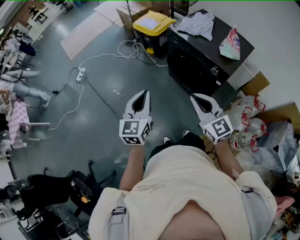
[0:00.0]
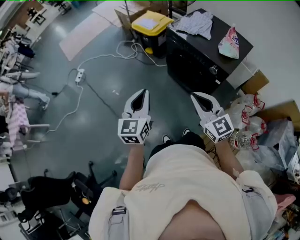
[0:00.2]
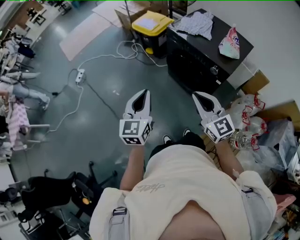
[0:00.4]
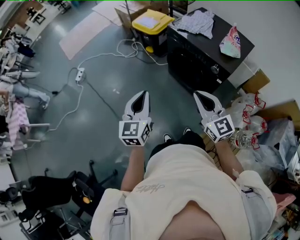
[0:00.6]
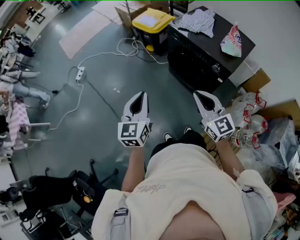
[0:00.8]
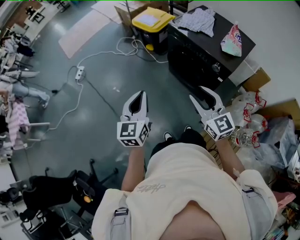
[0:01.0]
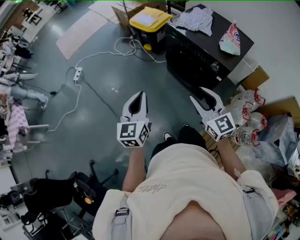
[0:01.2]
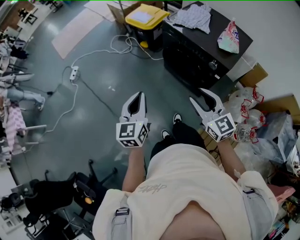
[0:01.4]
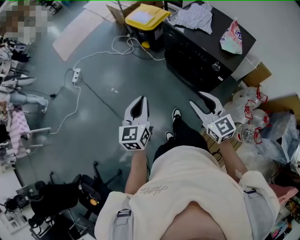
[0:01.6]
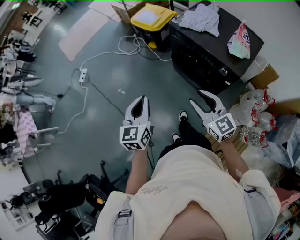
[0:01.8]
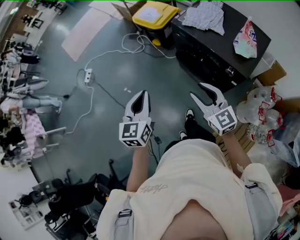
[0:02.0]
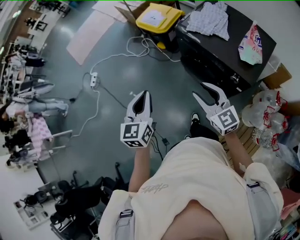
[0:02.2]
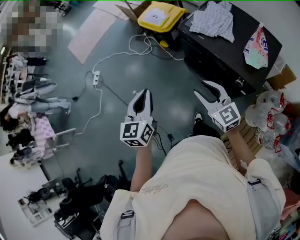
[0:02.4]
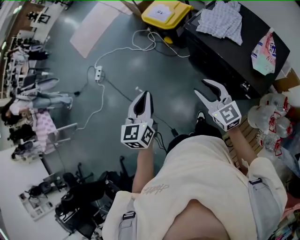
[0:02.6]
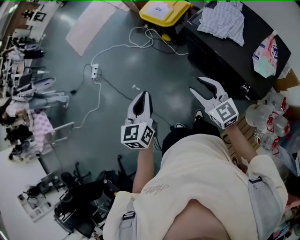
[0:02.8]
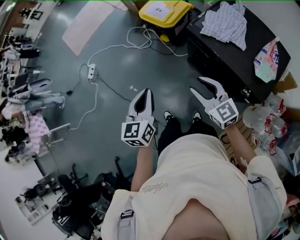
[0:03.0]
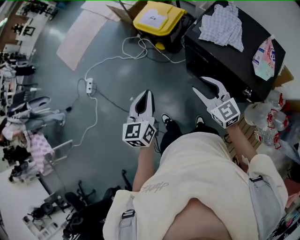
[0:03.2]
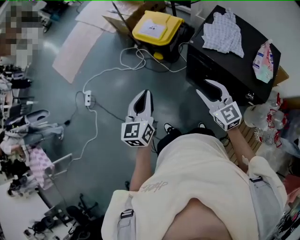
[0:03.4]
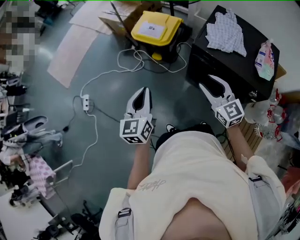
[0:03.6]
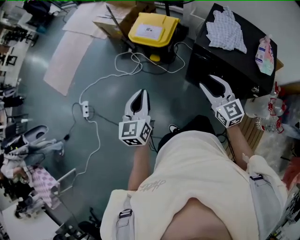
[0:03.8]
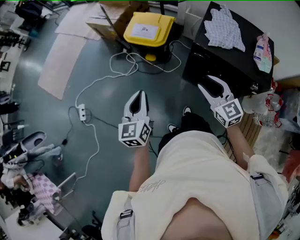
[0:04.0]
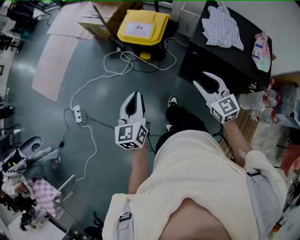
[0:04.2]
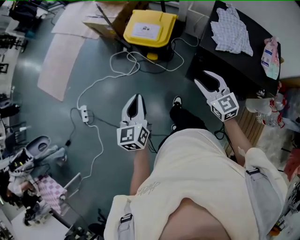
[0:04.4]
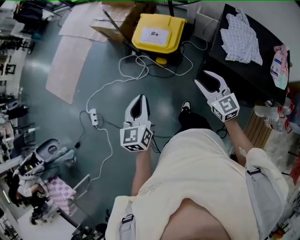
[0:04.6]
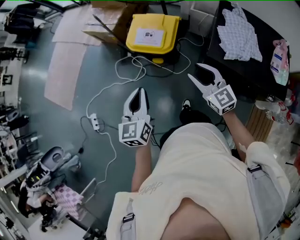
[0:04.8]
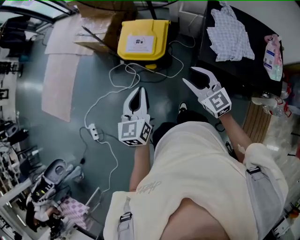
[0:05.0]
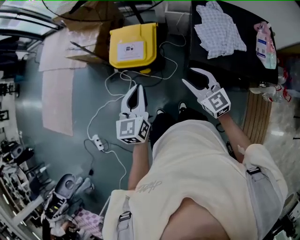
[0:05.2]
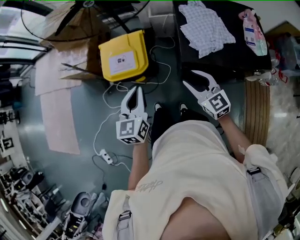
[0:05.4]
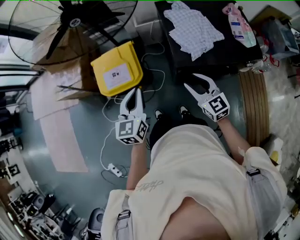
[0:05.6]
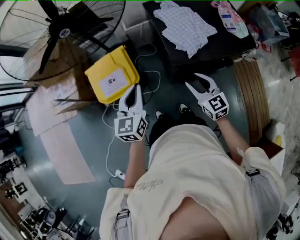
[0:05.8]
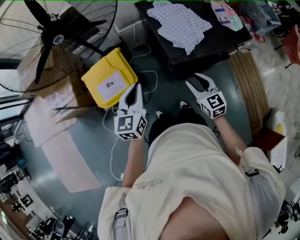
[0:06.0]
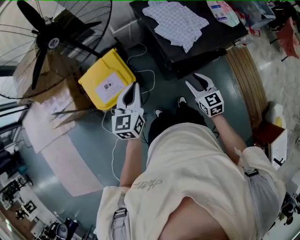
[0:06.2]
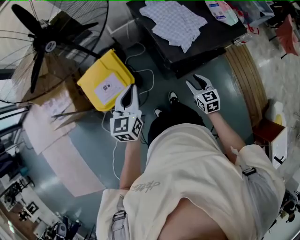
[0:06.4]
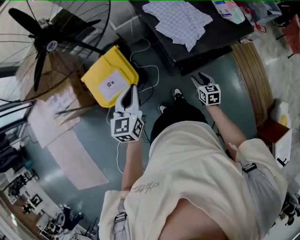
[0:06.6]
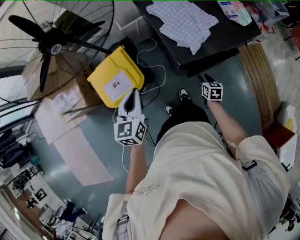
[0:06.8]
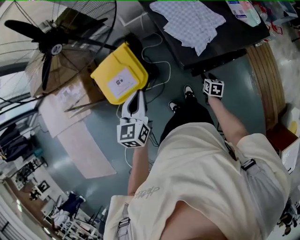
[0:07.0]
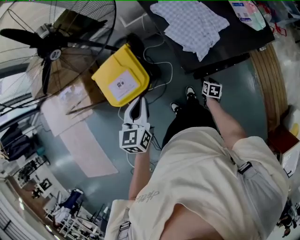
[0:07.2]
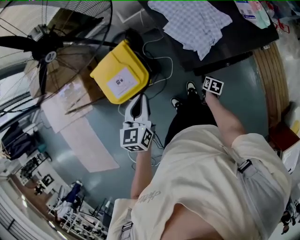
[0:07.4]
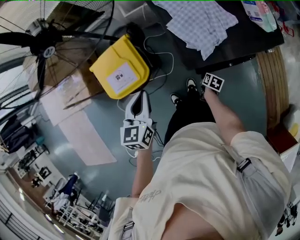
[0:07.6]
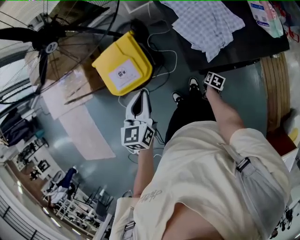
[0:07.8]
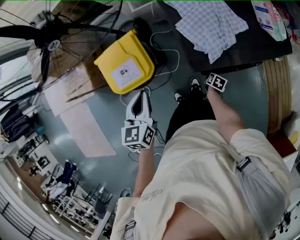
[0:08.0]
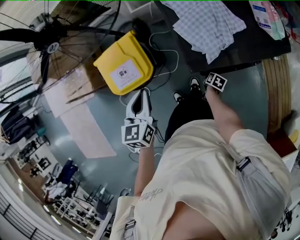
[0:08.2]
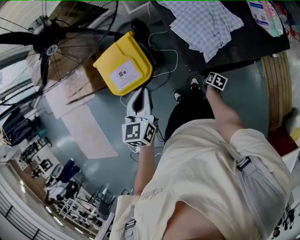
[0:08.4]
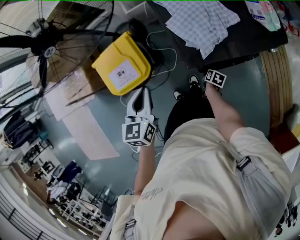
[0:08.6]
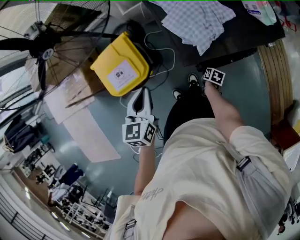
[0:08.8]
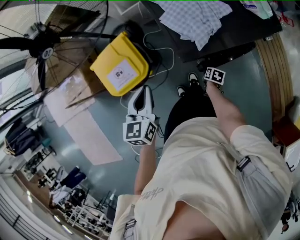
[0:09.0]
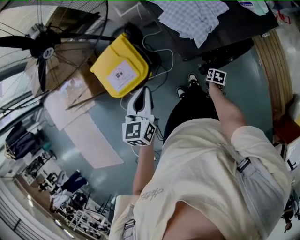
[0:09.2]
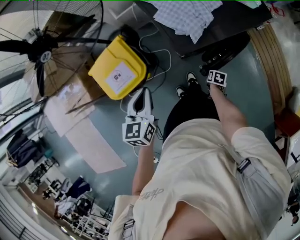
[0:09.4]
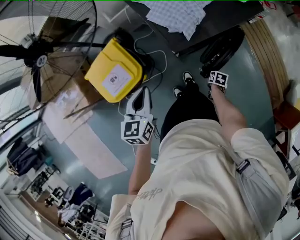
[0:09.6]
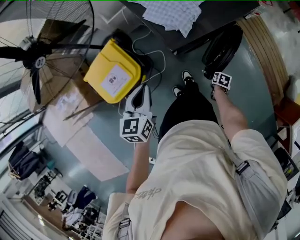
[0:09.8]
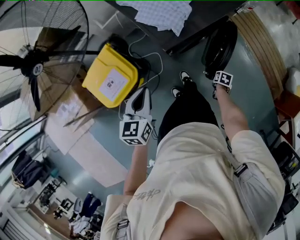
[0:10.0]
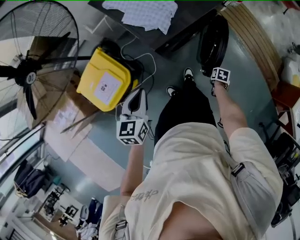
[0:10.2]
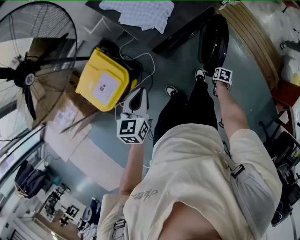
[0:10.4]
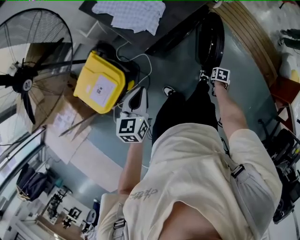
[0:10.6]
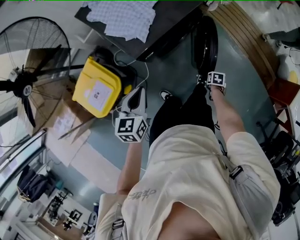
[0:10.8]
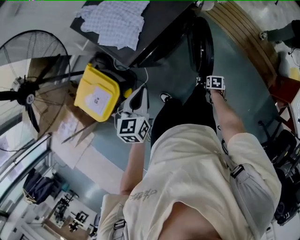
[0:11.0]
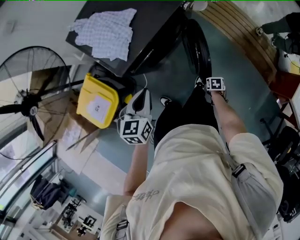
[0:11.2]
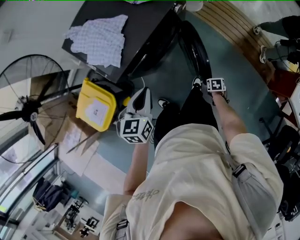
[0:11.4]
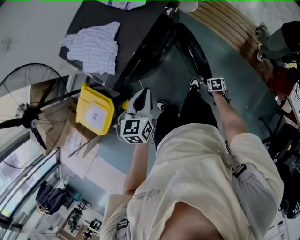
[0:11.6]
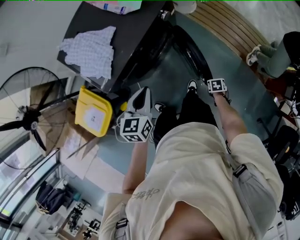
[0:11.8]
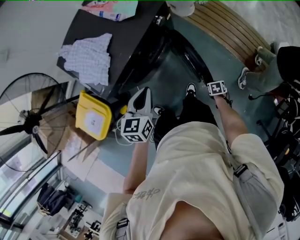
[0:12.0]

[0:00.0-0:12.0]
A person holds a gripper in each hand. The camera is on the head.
0:00.0 to 0:01.6: The right gripper shifts by some 5 cm, and opens up, while the left gripper changes place by roughly 5 cm.
0:01.6 to 0:03.0: Both grippers move forward, approximately 25 cm.
0:03.0 to 0:04.4: Both grippers move forward and to the left, roughly 25 cm. The right gripper swivels approximately 30 degrees.
0:04.4 to 0:06.0: The right gripper changes place by some 10 cm, and rotates some 50 degrees; the left gripper changes place by some 35 cm, and rotates roughly 50 degrees.
0:06.0 to 0:07.6: The left gripper changes place by roughly 5 cm. Meanwhile the right gripper is displaced downward by about 30 cm, and angles its fingers downward, by about 40 degrees.
0:07.6 to 0:09.0: The grippers make only small movements.
0:09.0 to 0:10.4: The left gripper ends up some 10 cm from where it was, and swivels approximately 30 degrees. The right gripper ends up about 25 cm from where it was, and closes.
0:10.4 to 0:12.0: The right gripper ends up about 20 cm from where it was. Meanwhile the left gripper ends up some 30 cm from where it was.

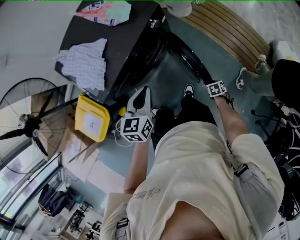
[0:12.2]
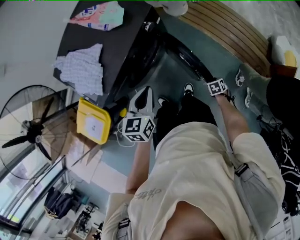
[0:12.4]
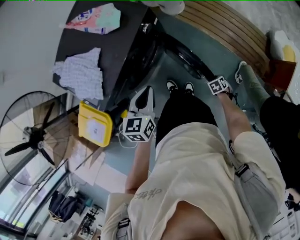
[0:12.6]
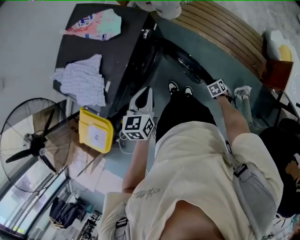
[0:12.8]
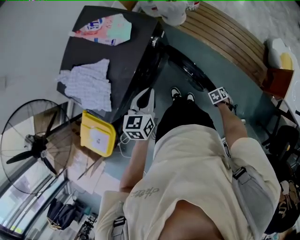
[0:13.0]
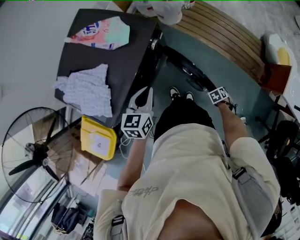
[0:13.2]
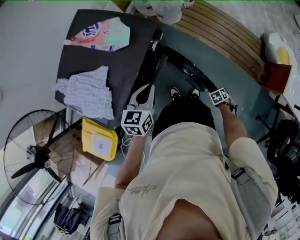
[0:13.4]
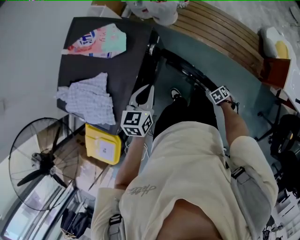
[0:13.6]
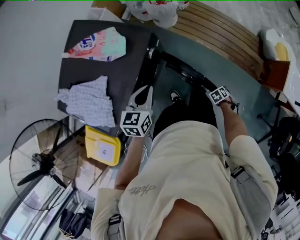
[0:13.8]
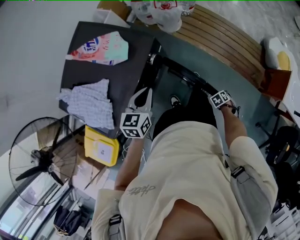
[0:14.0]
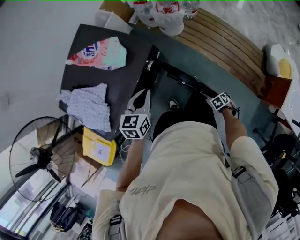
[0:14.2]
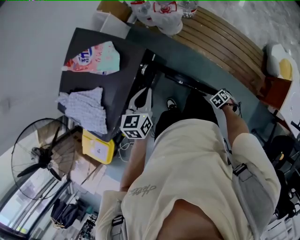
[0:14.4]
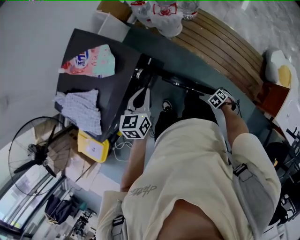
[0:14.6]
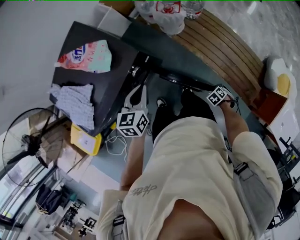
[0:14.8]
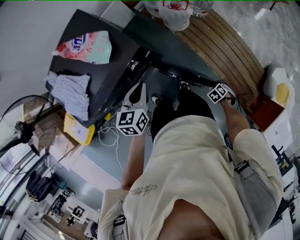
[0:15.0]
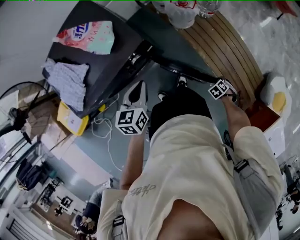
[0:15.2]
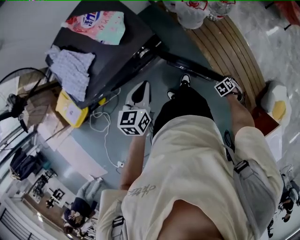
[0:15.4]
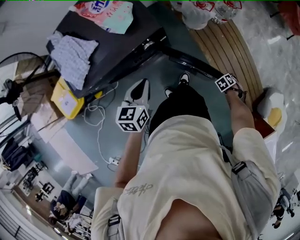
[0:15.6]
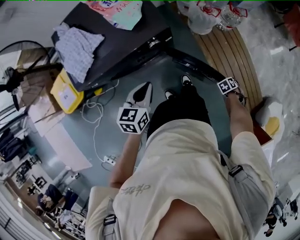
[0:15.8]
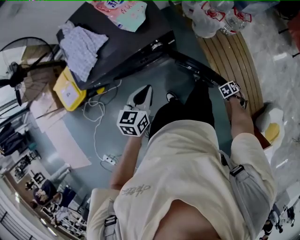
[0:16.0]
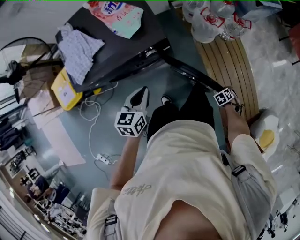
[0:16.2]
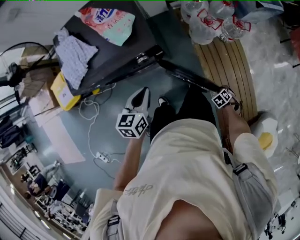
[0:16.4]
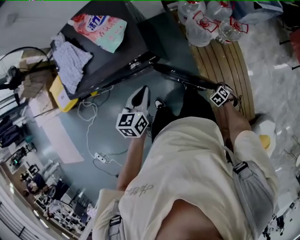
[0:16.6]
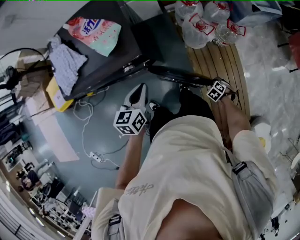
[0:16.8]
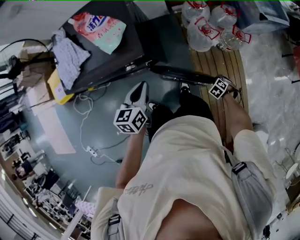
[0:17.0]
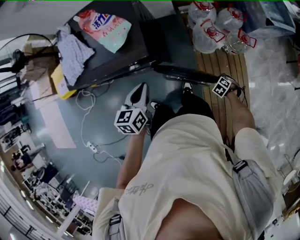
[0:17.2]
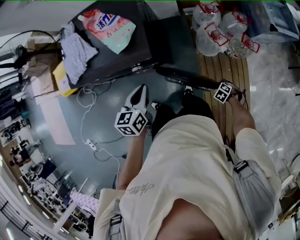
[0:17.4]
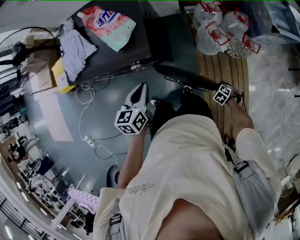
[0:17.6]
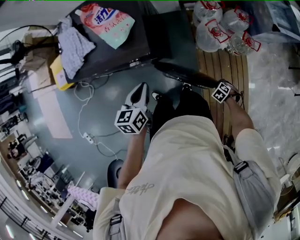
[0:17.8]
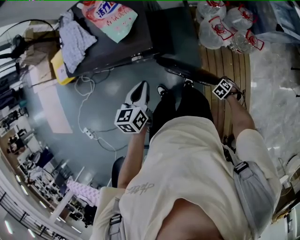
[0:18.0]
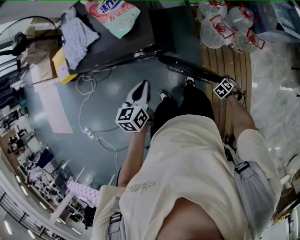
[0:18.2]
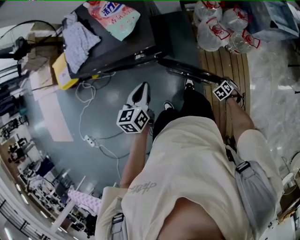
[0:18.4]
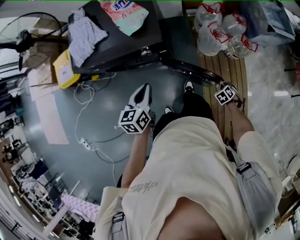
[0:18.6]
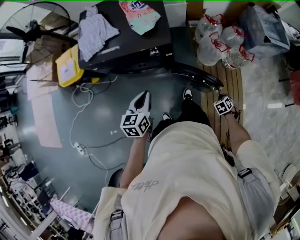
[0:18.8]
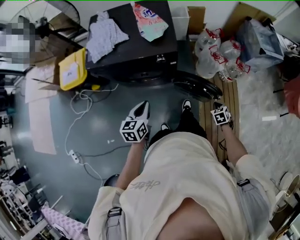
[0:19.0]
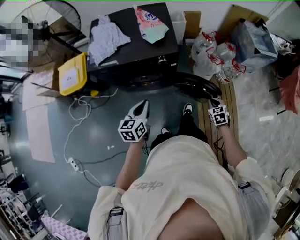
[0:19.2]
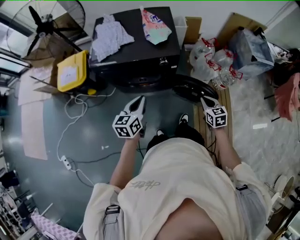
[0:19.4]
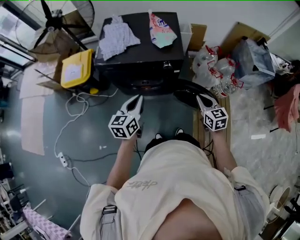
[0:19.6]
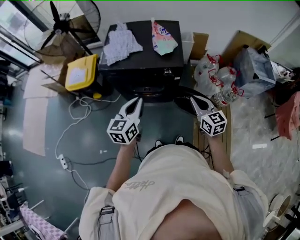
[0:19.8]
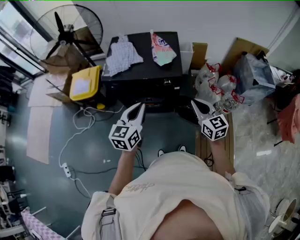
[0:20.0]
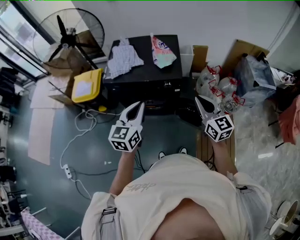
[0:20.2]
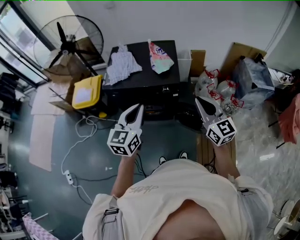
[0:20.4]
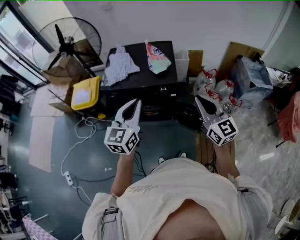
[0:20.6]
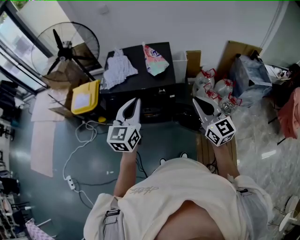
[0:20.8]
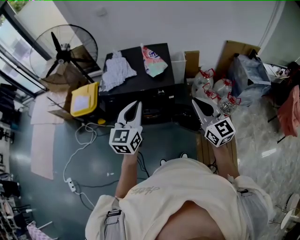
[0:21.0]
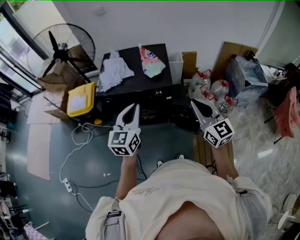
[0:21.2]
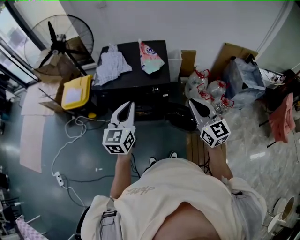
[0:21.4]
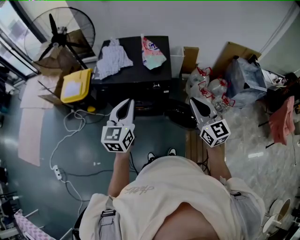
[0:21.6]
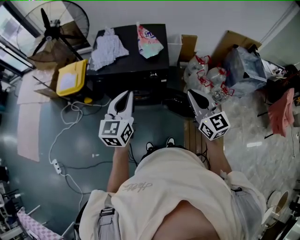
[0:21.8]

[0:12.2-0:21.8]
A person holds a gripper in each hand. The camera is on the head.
0:12.2 to 0:13.8: The left gripper moves some 15 cm. Meanwhile the right gripper changes place by approximately 5 cm.
0:13.8 to 0:15.4: The left gripper ends up approximately 10 cm from where it was, and swivels some 40 degrees. Meanwhile the right gripper shifts by some 30 cm, and turns by some 40 degrees.
0:15.4 to 0:17.0: The left gripper moves some 10 cm, and changes its angle by some 20 degrees, while the right gripper moves some 20 cm, and swivels some 40 degrees.
0:17.0 to 0:18.6: The left gripper moves roughly 10 cm. The right gripper changes place by about 5 cm.
0:18.6 to 0:20.2: The left gripper goes roughly 20 cm upward, and rotates about 30 degrees, while the right gripper is displaced upward by about 50 cm, and points its fingers some 70 degrees further upward.

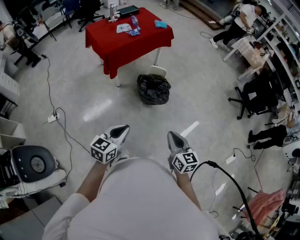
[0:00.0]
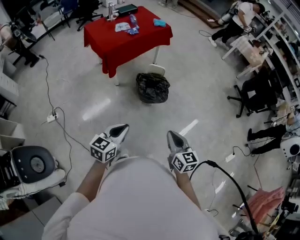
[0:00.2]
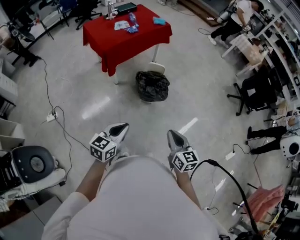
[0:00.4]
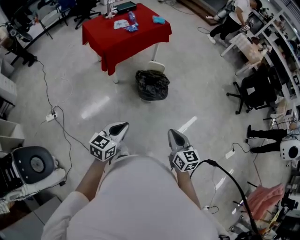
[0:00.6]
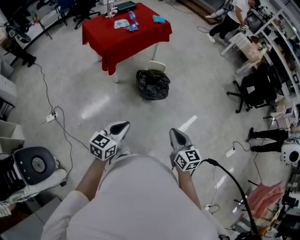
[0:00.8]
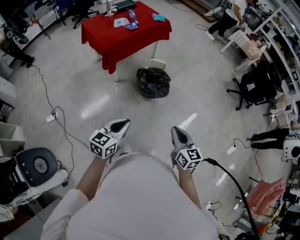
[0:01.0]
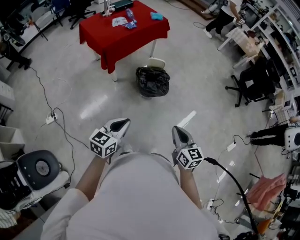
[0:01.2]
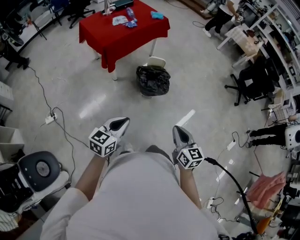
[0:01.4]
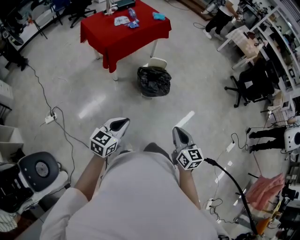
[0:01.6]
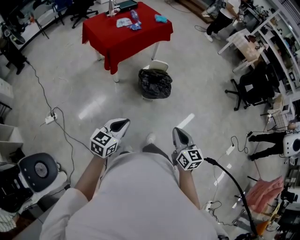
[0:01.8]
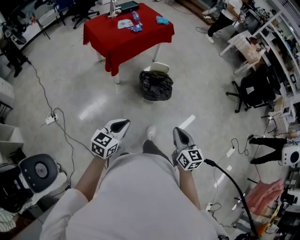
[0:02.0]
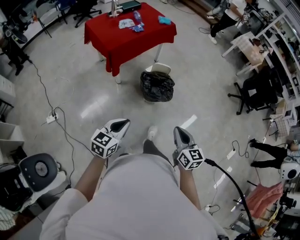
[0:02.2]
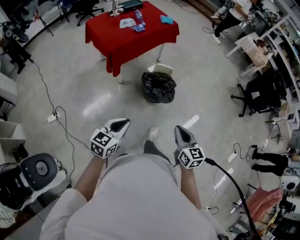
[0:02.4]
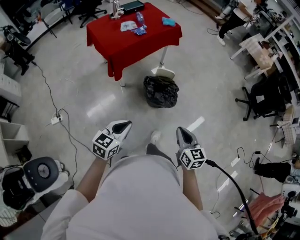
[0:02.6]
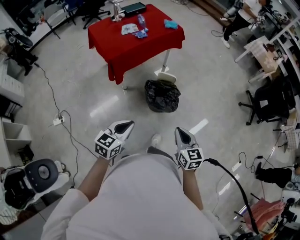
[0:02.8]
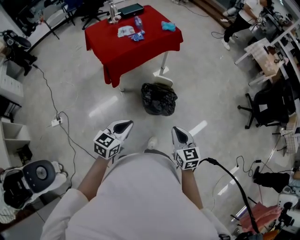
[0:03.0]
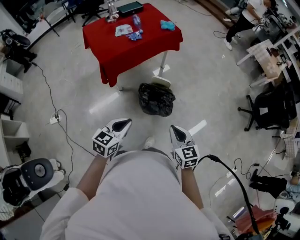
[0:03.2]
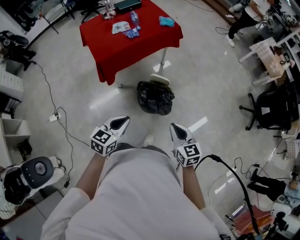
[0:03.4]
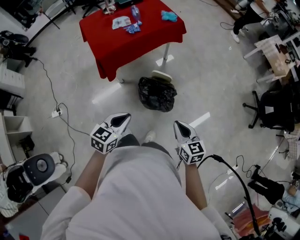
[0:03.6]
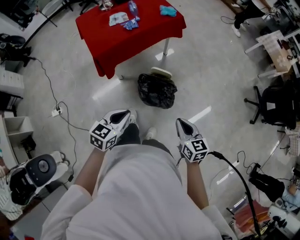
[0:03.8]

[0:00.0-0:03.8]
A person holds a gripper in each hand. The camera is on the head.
0:00.0 to 0:01.2: The grippers make only small movements.
0:01.2 to 0:02.6: The grippers both shift forward by about 15 cm.
0:02.6 to 0:03.8: The left gripper is displaced forward and to the right by approximately 25 cm, while the right gripper heads forward, covering some 20 cm.
